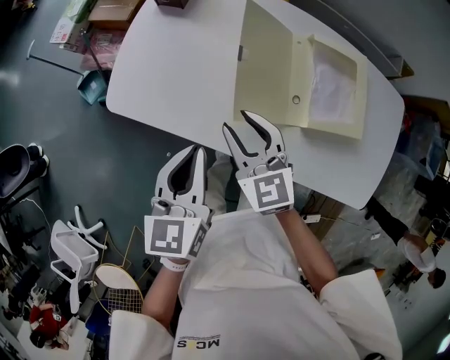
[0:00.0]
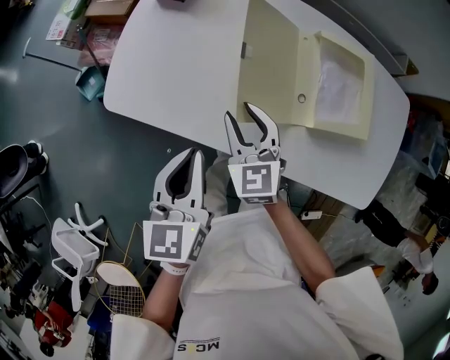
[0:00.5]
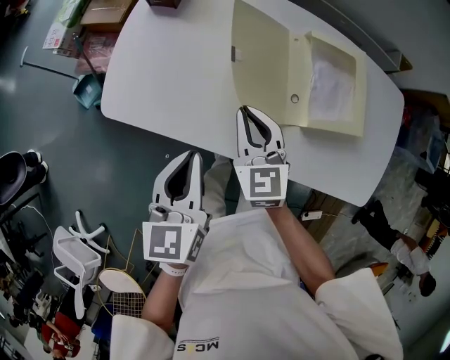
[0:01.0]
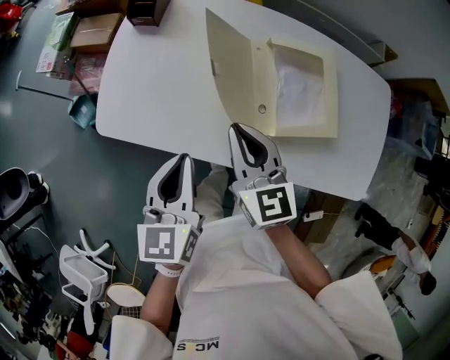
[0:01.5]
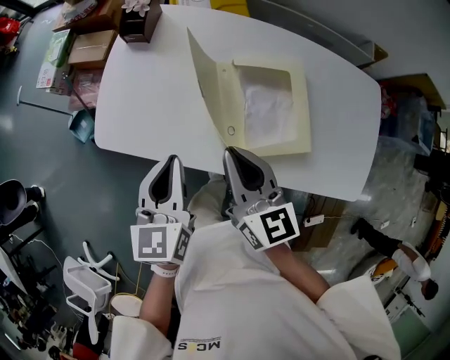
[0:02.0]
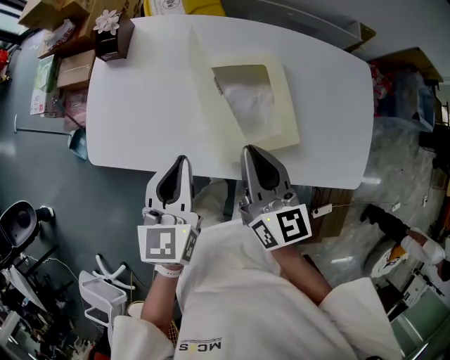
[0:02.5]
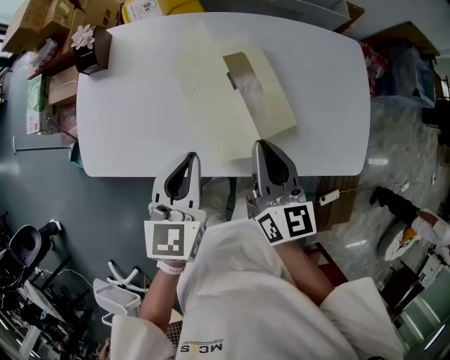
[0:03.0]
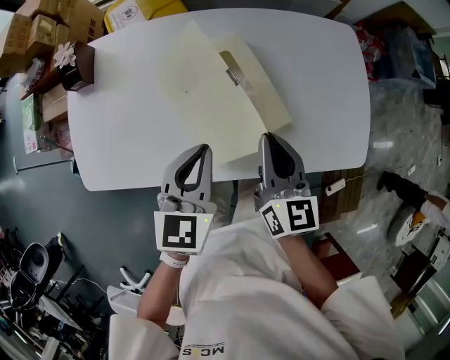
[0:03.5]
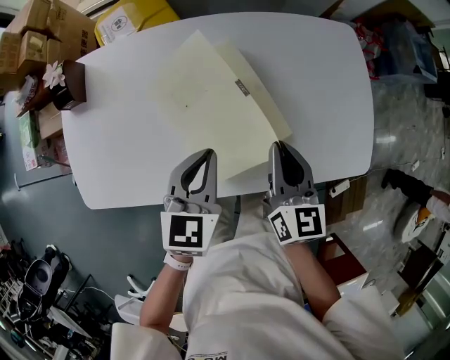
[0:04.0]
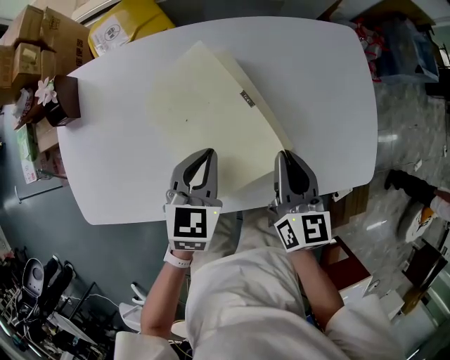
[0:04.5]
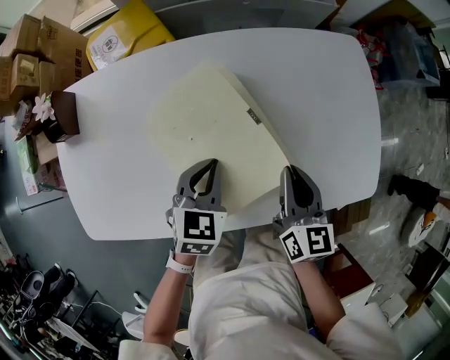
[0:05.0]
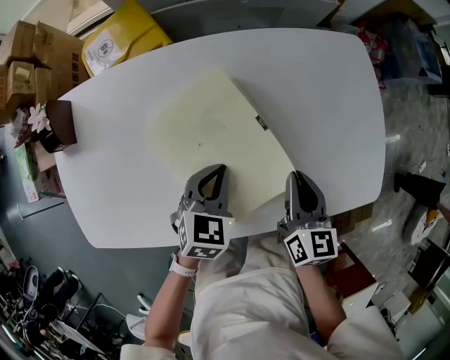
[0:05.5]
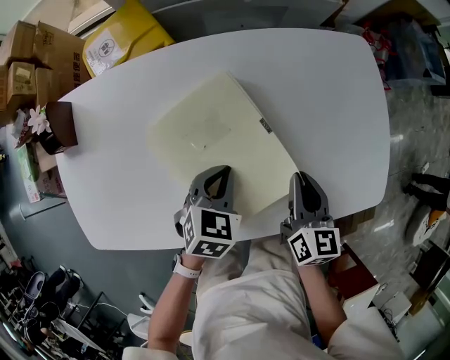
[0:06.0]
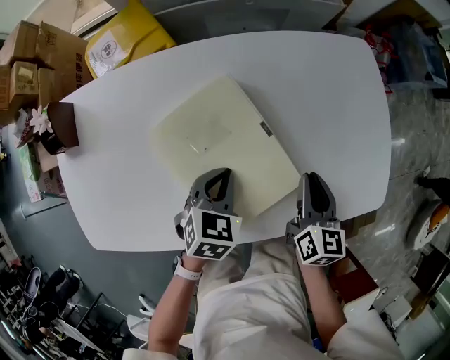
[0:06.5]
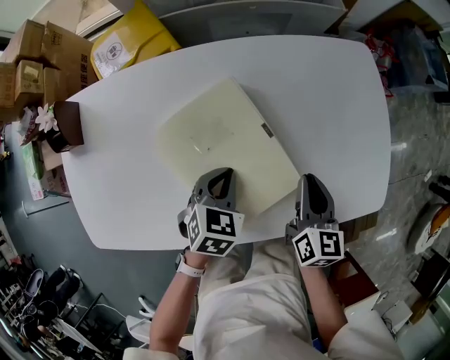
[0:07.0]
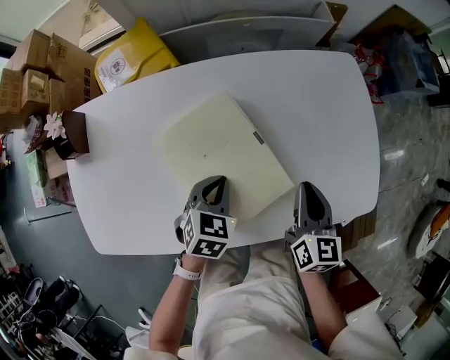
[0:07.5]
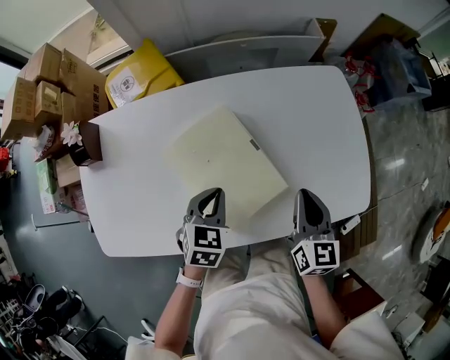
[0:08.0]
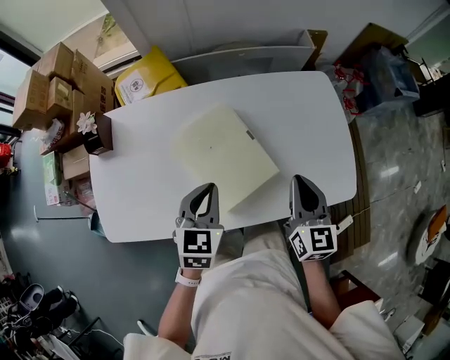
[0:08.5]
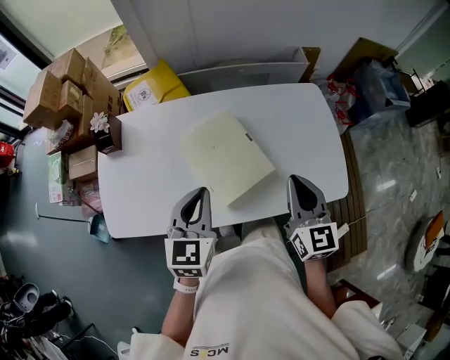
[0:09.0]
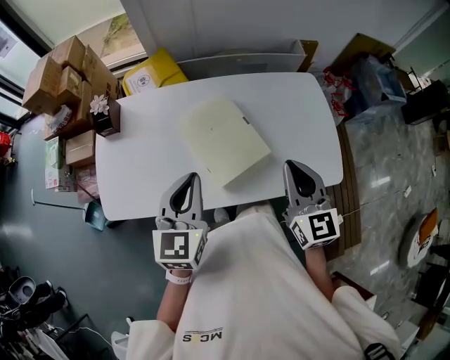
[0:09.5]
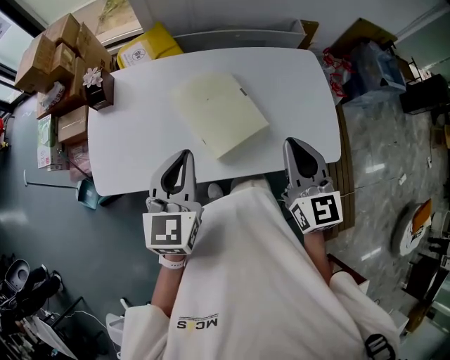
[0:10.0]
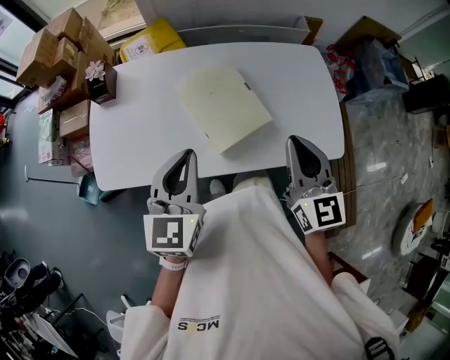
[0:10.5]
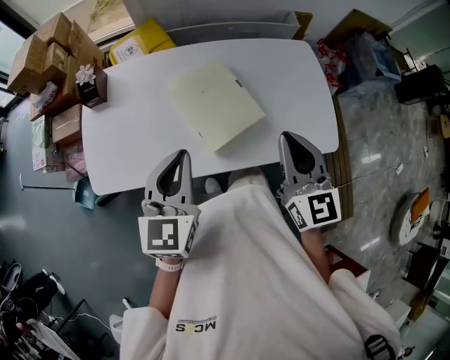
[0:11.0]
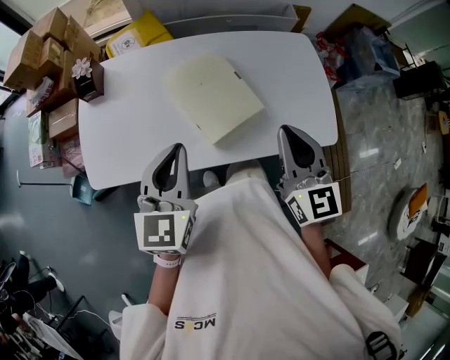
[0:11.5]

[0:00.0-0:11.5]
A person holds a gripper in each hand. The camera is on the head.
0:00.0 to 0:02.0: The right gripper goes roughly 10 cm upward and to the right, swivels roughly 30 degrees, and closes its fingers.
0:02.0 to 0:04.0: The left gripper shifts by approximately 25 cm, and changes its angle by some 30 degrees; the right gripper changes place by some 25 cm, and swivels some 30 degrees.
0:04.0 to 0:06.0: The left gripper is displaced downward and forward by approximately 15 cm, and turns by some 30 degrees. The right gripper shifts roughly 10 cm downward and to the right.
0:06.0 to 0:07.5: The grippers move only a little.
0:07.5 to 0:09.5: The grippers both shift upward and backward by roughly 30 cm. The left gripper angles its fingers upward, by some 30 degrees, while the right gripper turns by roughly 30 degrees.
0:09.5 to 0:11.5: The grippers make only small movements.

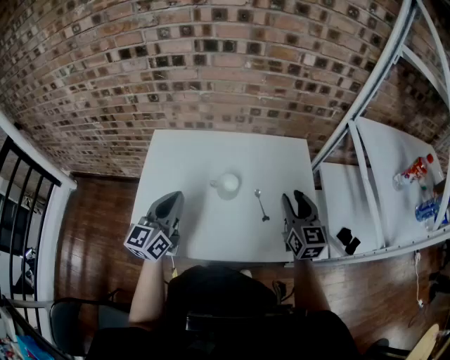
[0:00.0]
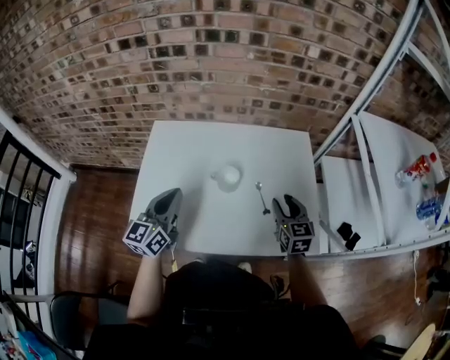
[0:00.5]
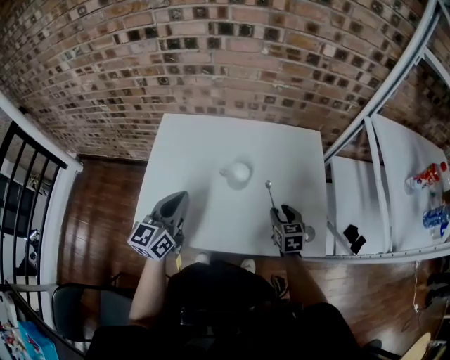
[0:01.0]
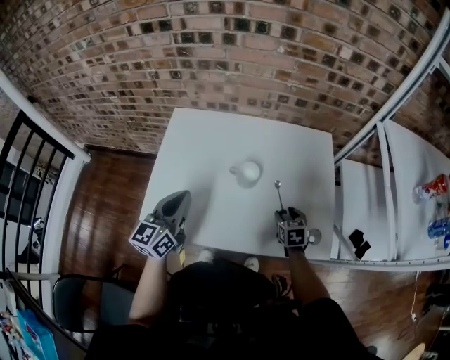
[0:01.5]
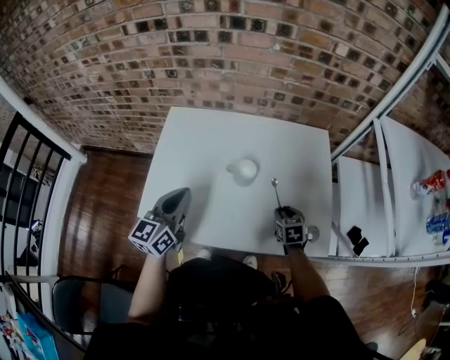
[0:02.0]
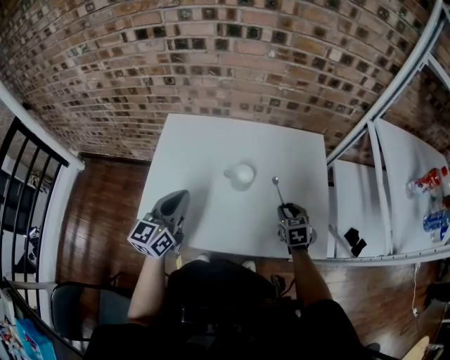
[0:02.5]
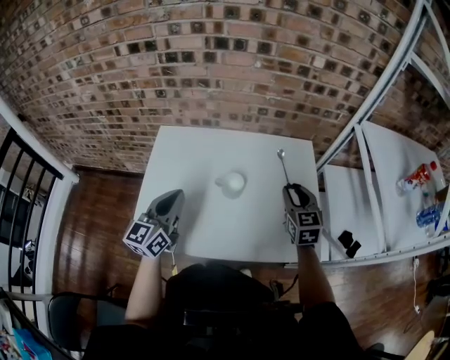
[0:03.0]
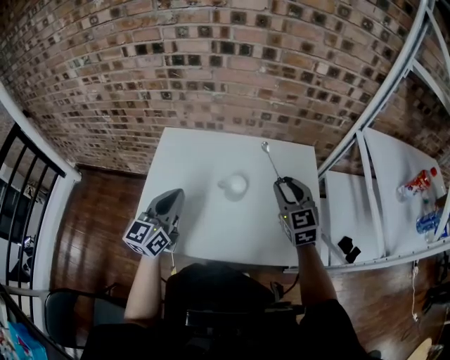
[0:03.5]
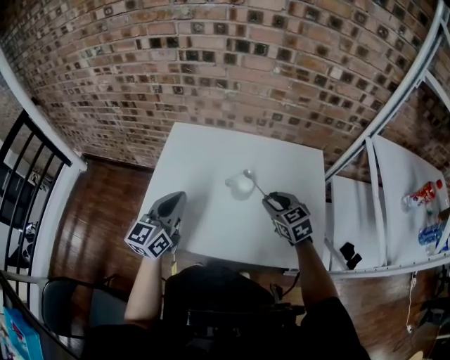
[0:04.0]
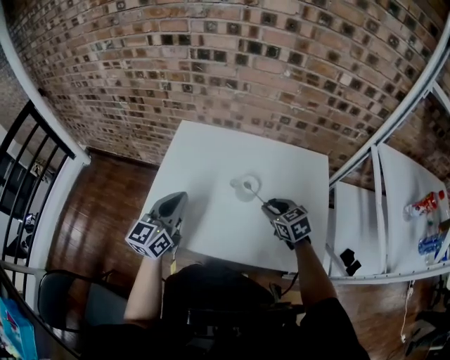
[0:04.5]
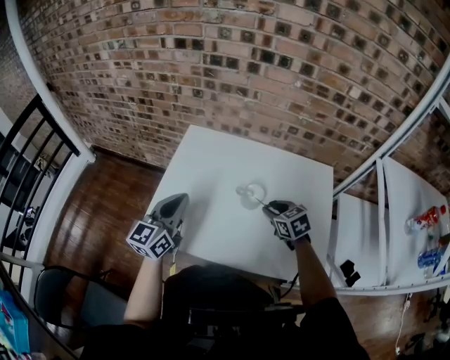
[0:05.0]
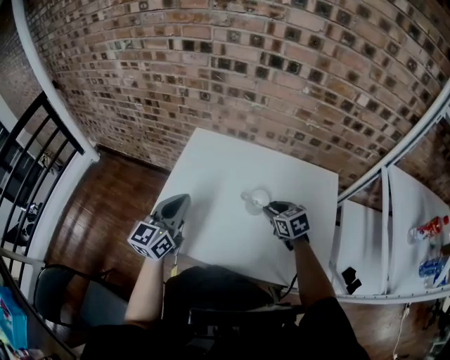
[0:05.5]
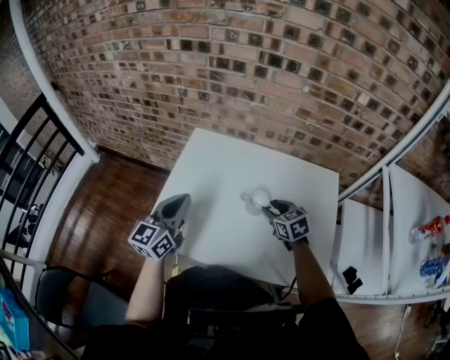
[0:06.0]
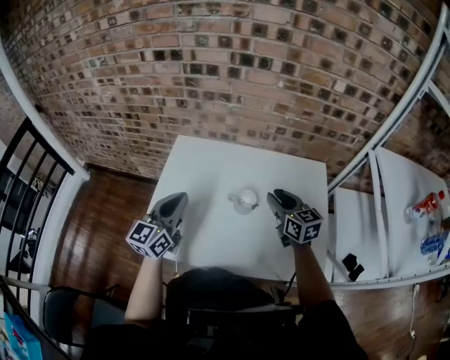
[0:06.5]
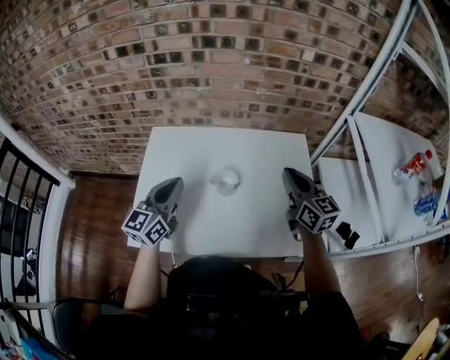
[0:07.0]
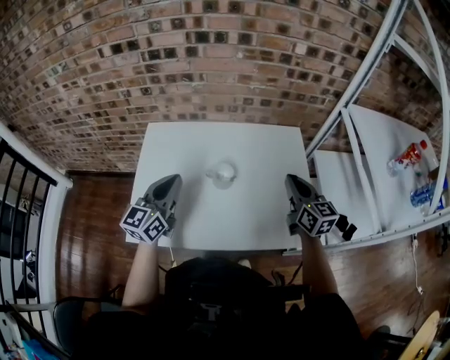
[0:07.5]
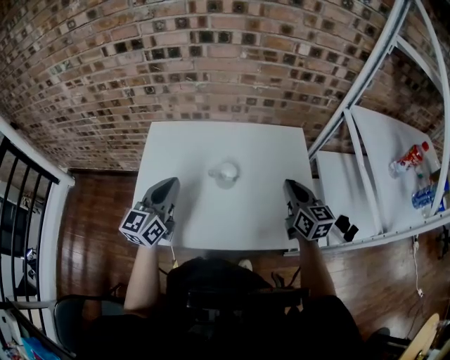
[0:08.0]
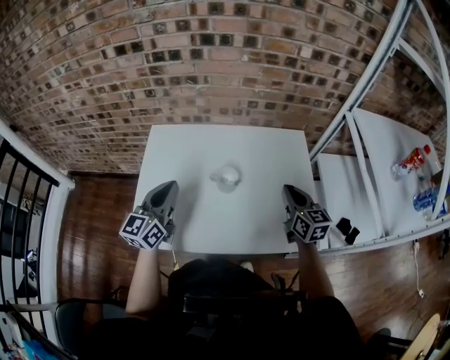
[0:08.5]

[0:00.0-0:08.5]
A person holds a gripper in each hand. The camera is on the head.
0:00.0 to 0:02.0: The right gripper travels downward by some 25 cm, and angles its fingers downward, by approximately 40 degrees.
0:02.0 to 0:04.0: The right gripper shifts approximately 20 cm upward and to the left, and swivels roughly 30 degrees.
0:04.0 to 0:06.5: The right gripper travels upward and forward by roughly 10 cm, and turns by about 30 degrees.
0:06.5 to 0:08.5: The right gripper travels to the right and backward by roughly 15 cm, and closes its fingers.

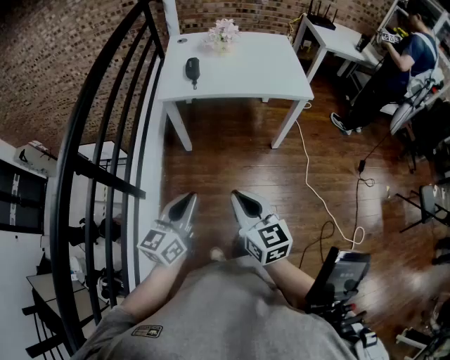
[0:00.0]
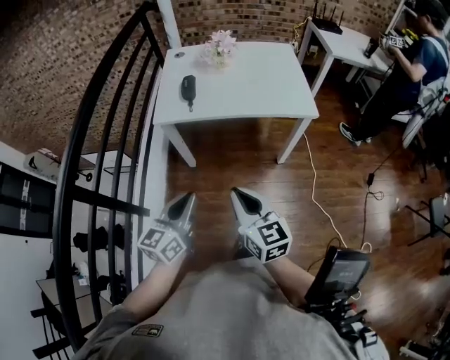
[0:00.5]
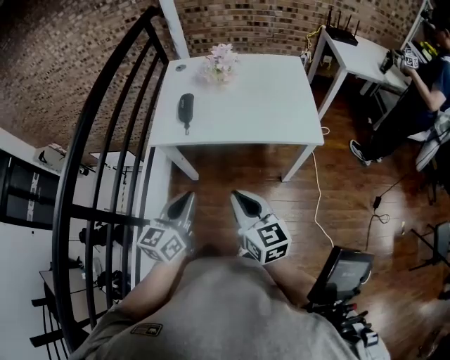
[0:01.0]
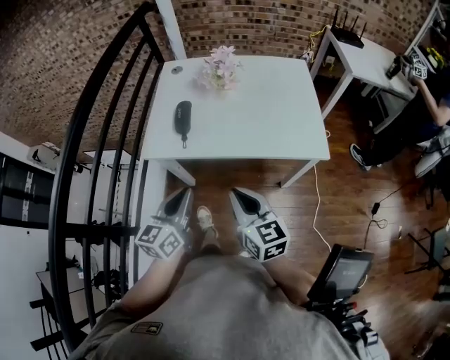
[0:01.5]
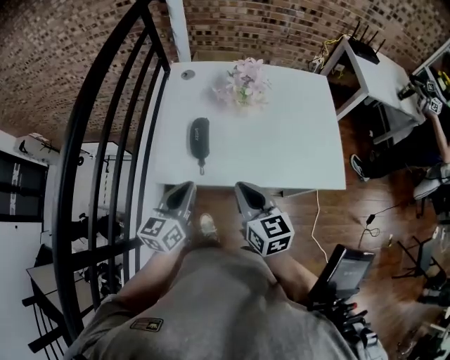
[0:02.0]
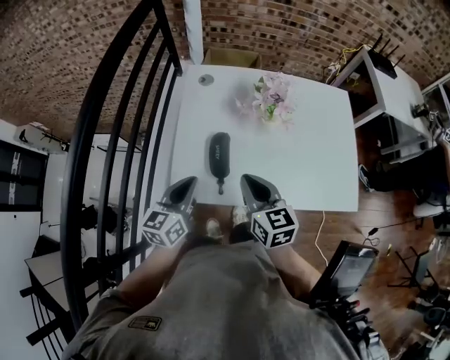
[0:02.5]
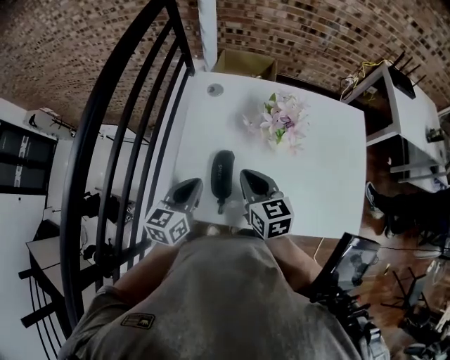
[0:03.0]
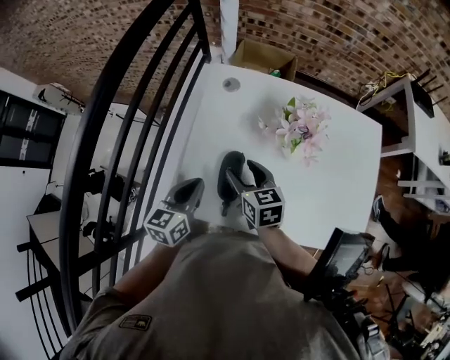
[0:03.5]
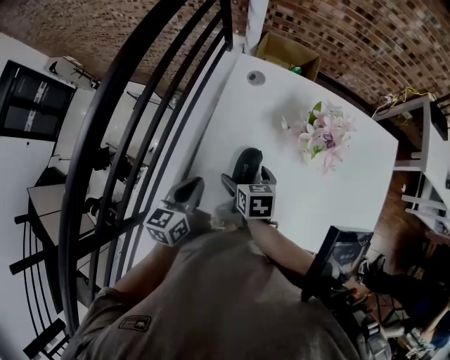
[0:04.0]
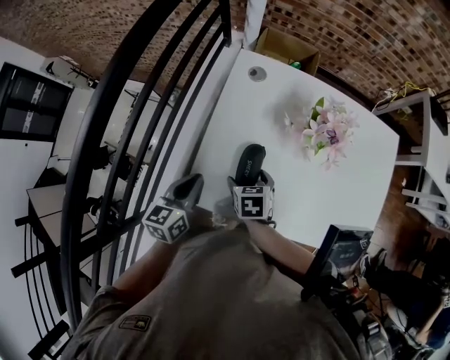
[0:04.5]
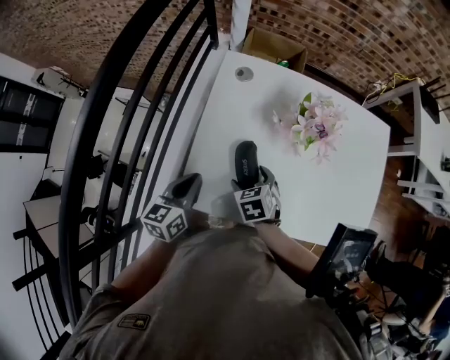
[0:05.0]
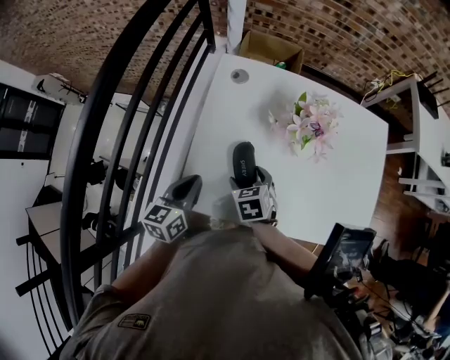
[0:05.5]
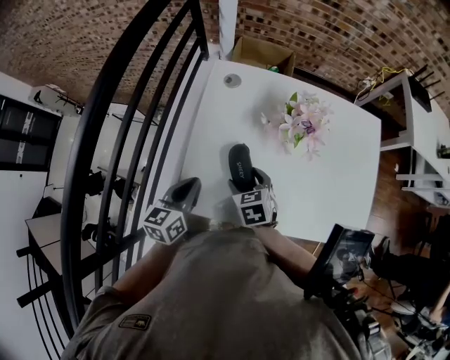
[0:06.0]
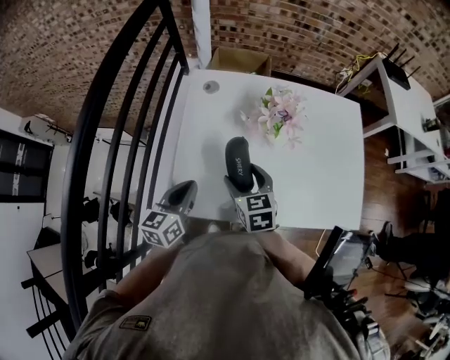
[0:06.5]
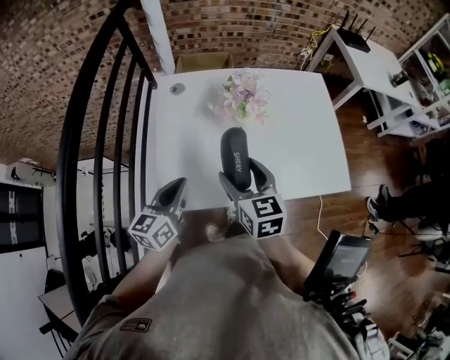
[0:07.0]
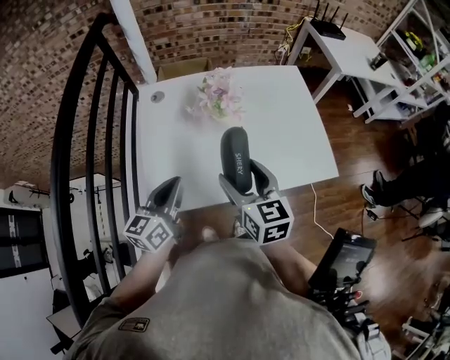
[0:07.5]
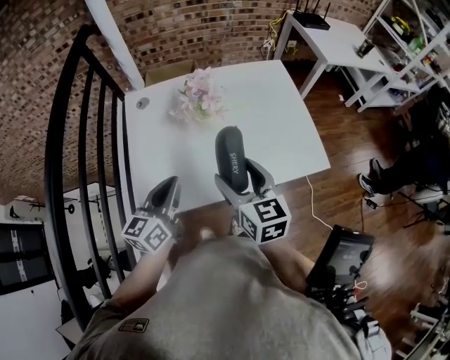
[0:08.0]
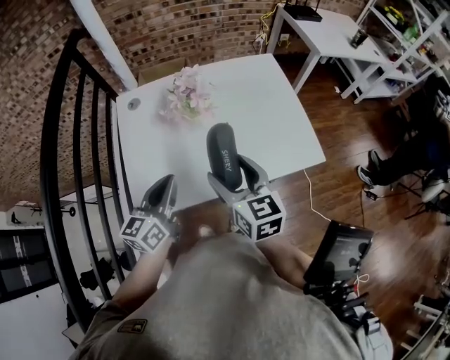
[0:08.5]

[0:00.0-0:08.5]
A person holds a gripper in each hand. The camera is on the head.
0:00.0 to 0:02.0: Both grippers are carried forward, approximately 50 cm.
0:02.0 to 0:04.0: The right gripper shifts roughly 30 cm forward, downward and to the left, points its fingers approximately 30 degrees further downward, and opens its fingers; the left gripper heads forward, to the left and downward, covering roughly 20 cm.
0:04.0 to 0:06.5: The right gripper is displaced upward and to the right by roughly 10 cm, changes its angle by about 20 degrees, and closes up.
0:06.5 to 0:08.5: The right gripper shifts some 20 cm to the right, upward and backward, and rotates roughly 30 degrees. The left gripper travels to the right and upward by about 15 cm.
